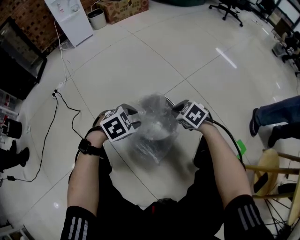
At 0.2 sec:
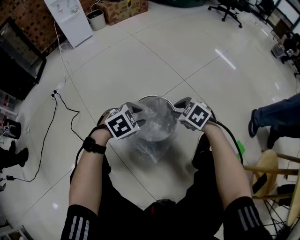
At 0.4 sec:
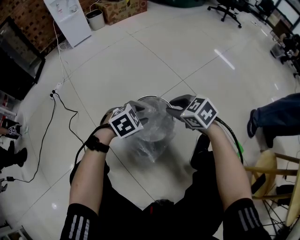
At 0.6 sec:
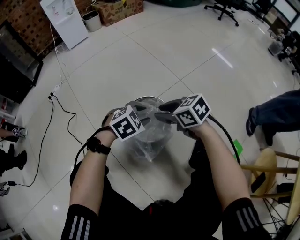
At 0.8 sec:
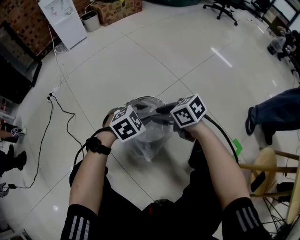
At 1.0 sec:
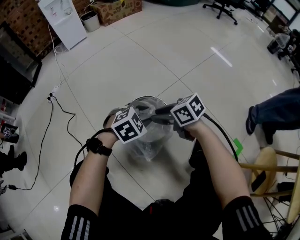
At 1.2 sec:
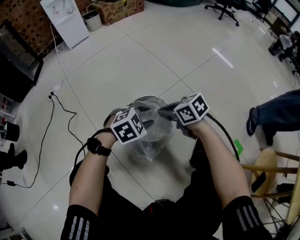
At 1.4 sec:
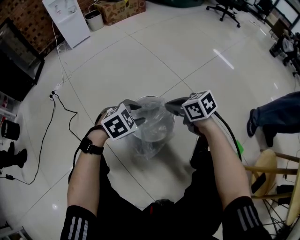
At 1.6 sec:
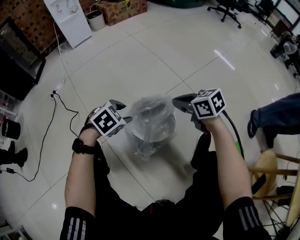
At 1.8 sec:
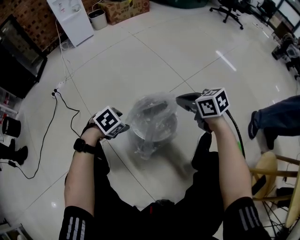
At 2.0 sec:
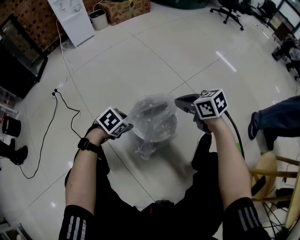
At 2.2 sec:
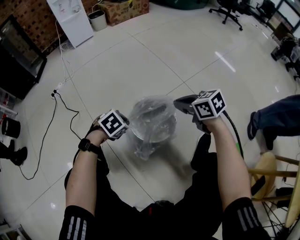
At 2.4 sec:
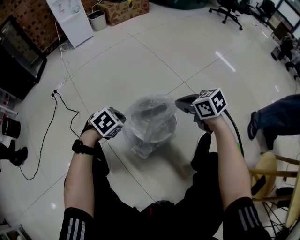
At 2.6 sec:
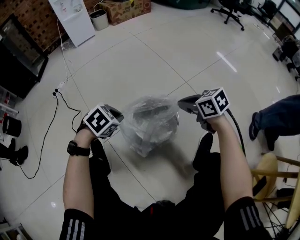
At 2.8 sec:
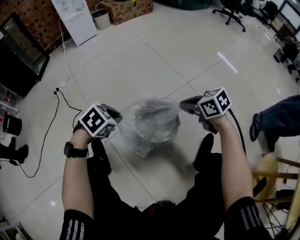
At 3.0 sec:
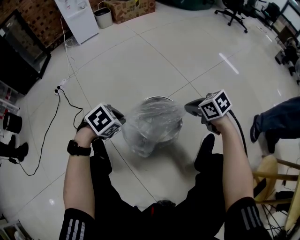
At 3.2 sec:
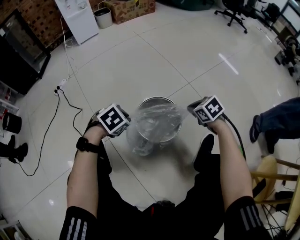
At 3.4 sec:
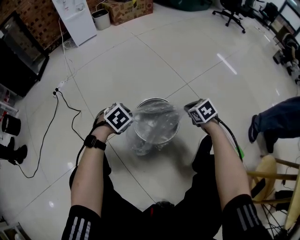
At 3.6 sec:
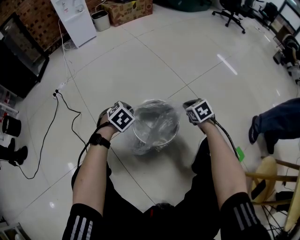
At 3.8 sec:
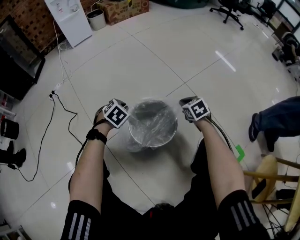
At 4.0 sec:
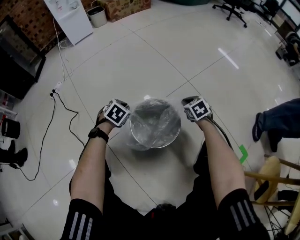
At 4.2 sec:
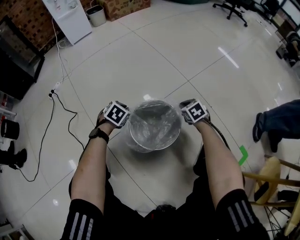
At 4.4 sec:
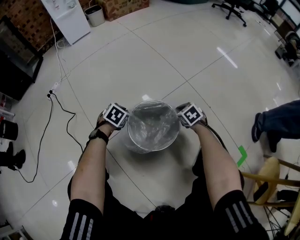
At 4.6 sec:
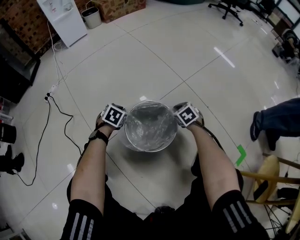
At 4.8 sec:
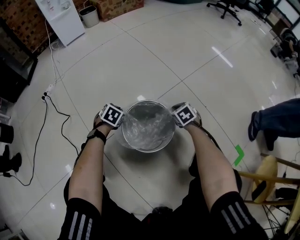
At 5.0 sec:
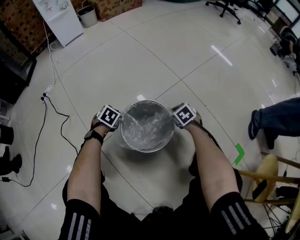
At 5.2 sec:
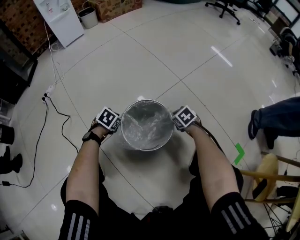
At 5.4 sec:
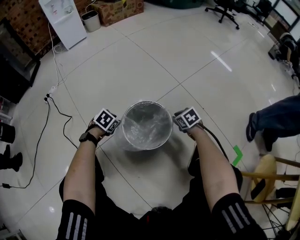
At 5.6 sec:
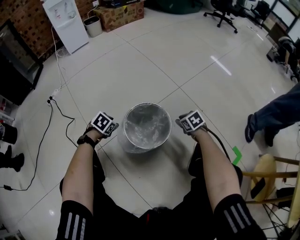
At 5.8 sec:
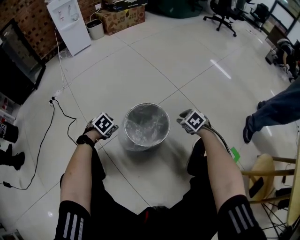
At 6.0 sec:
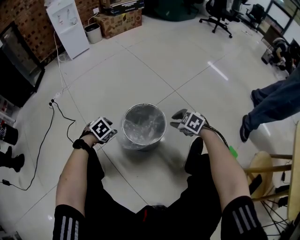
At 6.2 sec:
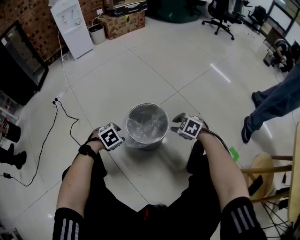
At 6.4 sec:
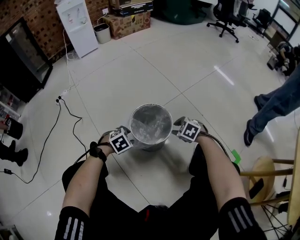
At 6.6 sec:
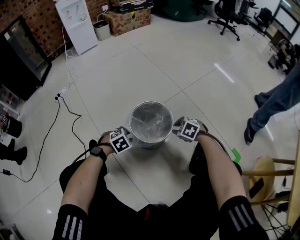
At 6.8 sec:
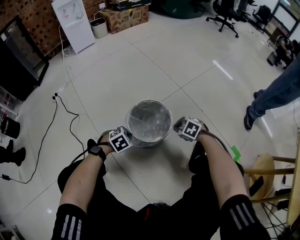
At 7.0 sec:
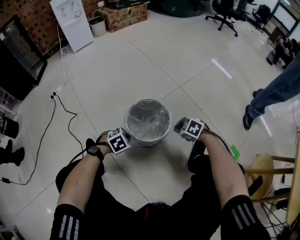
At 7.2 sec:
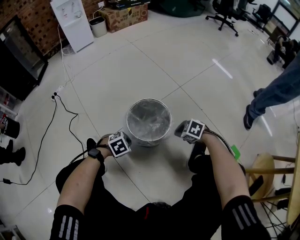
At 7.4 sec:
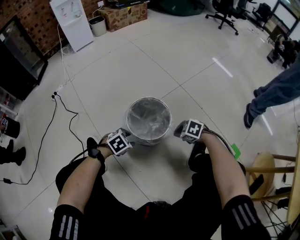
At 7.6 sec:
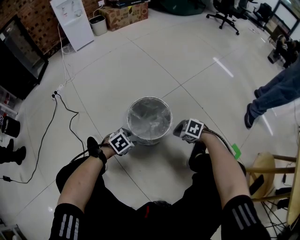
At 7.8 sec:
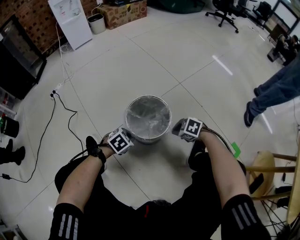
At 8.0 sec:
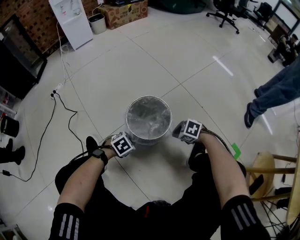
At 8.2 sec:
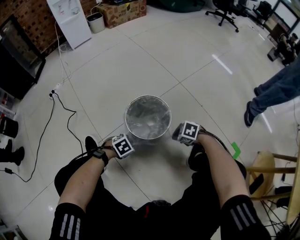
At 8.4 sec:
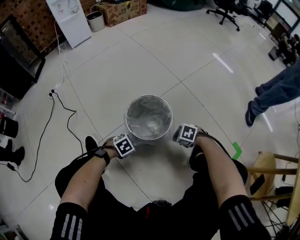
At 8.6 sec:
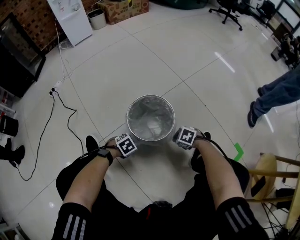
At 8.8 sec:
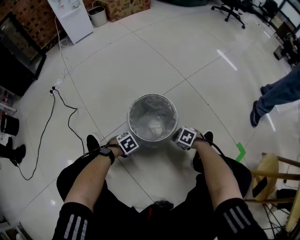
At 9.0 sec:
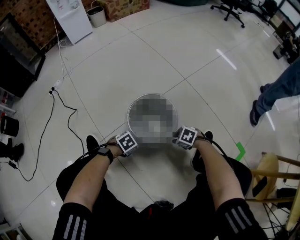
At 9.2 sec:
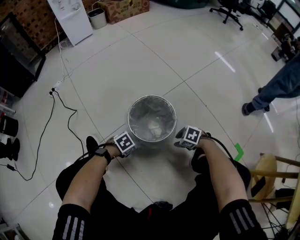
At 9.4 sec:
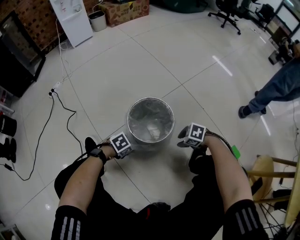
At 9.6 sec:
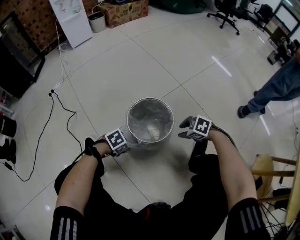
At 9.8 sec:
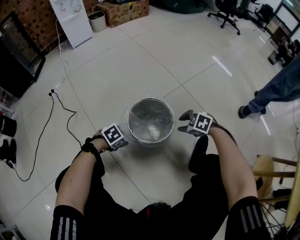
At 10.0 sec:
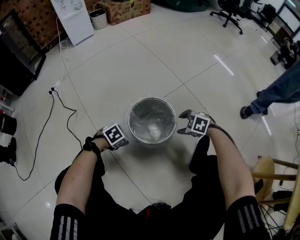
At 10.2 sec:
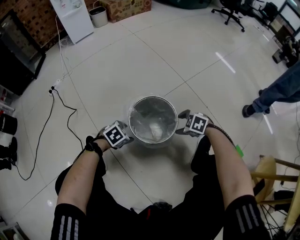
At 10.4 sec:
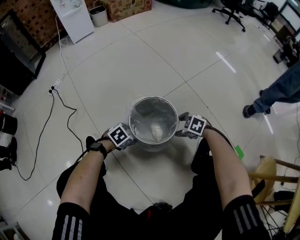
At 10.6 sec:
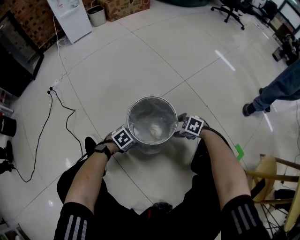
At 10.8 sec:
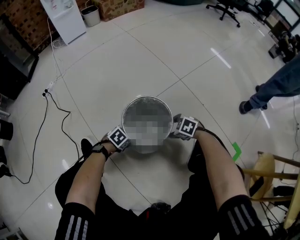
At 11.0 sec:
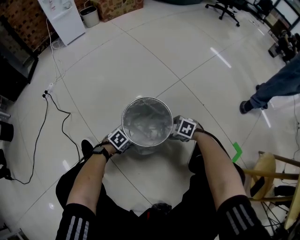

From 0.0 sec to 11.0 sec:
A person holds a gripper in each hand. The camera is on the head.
From 0.0 sec to 1.6 sec: The right gripper heads upward, covering some 10 cm, swivels roughly 30 degrees, and opens, then closes once more.
From 1.6 sec to 3.2 sec: The left gripper goes up and down, some 10 cm each way, reversing 2 times, and closes up. Meanwhile the right gripper moves downward, approximately 10 cm, and turns by roughly 30 degrees.
From 3.2 sec to 4.8 sec: Both grippers travel together downward and forward, roughly 20 cm. The left gripper swivels some 20 degrees.
From 4.8 sec to 6.2 sec: Both grippers move backward and upward, about 20 cm. The right gripper turns by some 30 degrees, and opens. Meanwhile the left gripper swivels approximately 30 degrees, and opens.
From 6.2 sec to 7.8 sec: Both grippers travel together downward, some 5 cm. The right gripper closes its fingers. Meanwhile the left gripper closes.
From 7.8 sec to 9.4 sec: The left gripper moves downward, roughly 5 cm, and opens up; the right gripper travels downward and back again, some 10 cm each way, and opens up.
From 9.4 sec to 11.0 sec: The left gripper shifts some 5 cm downward, while the right gripper ends up approximately 10 cm from where it was, and opens up.

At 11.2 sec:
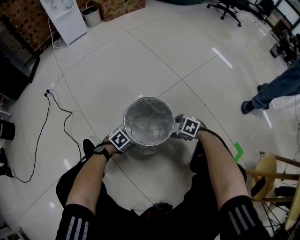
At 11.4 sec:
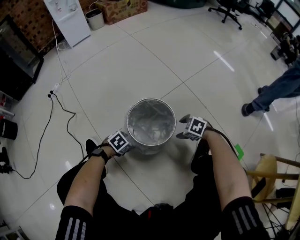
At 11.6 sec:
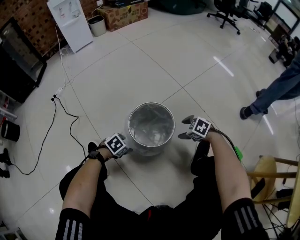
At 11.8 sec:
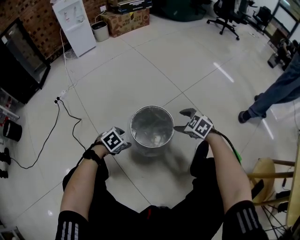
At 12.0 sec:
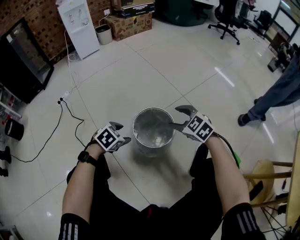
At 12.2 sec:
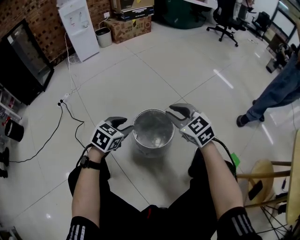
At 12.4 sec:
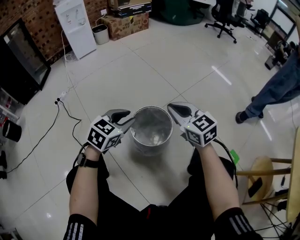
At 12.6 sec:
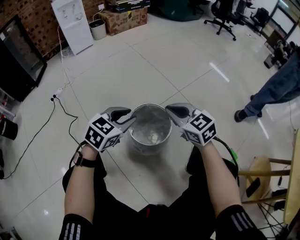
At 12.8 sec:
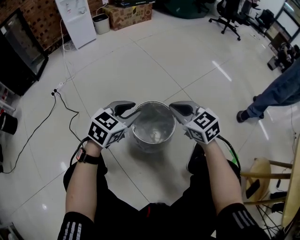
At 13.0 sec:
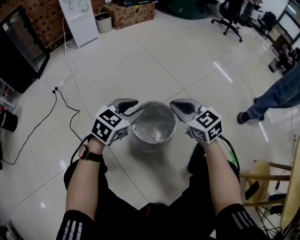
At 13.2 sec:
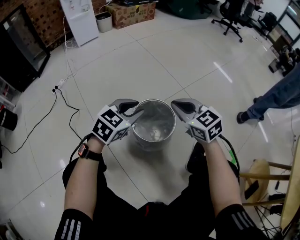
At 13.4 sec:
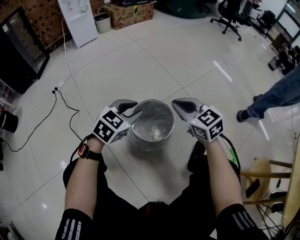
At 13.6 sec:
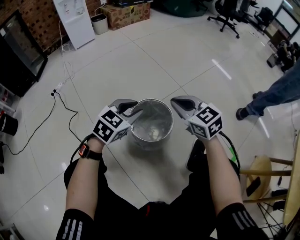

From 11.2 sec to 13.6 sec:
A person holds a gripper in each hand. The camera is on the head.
From 11.2 sec to 12.4 sec: Both grippers move upward, approximately 35 cm. The right gripper tips its fingers upward by approximately 50 degrees, and closes its fingers. The left gripper tips its fingers upward by about 40 degrees, and closes up.
From 12.4 sec to 13.6 sec: The grippers move only a little.

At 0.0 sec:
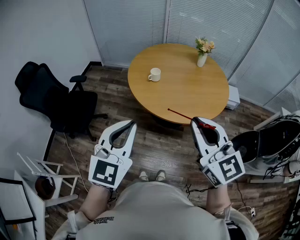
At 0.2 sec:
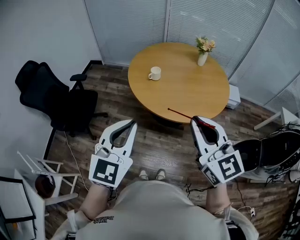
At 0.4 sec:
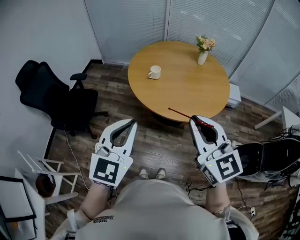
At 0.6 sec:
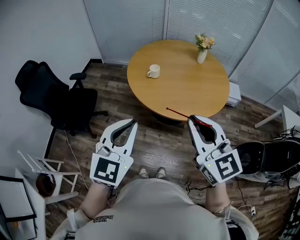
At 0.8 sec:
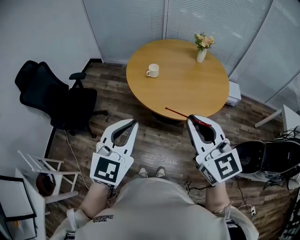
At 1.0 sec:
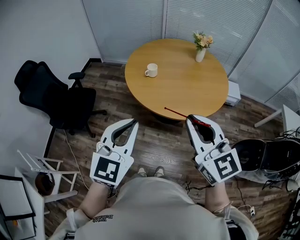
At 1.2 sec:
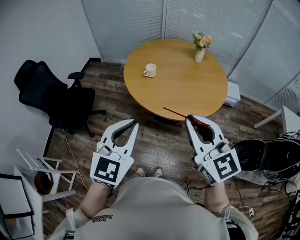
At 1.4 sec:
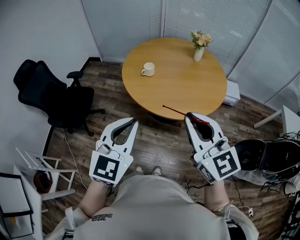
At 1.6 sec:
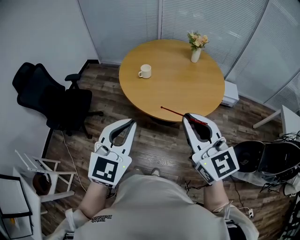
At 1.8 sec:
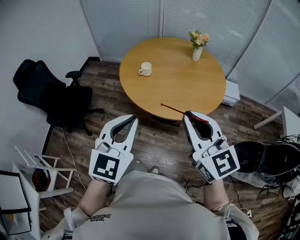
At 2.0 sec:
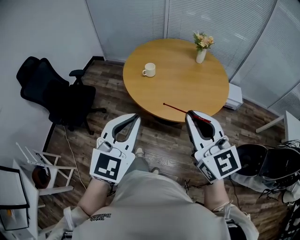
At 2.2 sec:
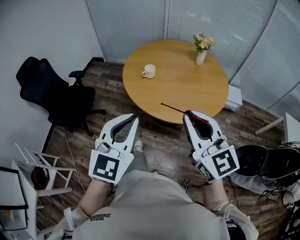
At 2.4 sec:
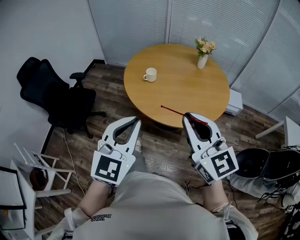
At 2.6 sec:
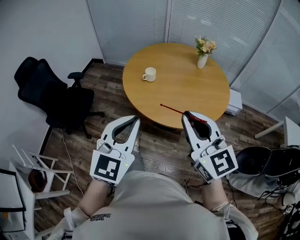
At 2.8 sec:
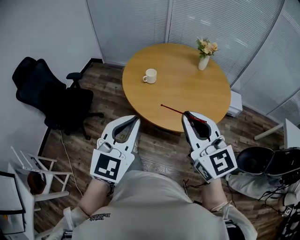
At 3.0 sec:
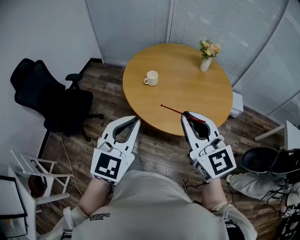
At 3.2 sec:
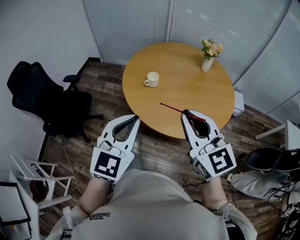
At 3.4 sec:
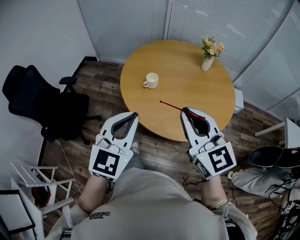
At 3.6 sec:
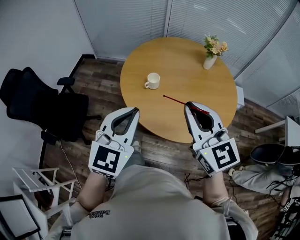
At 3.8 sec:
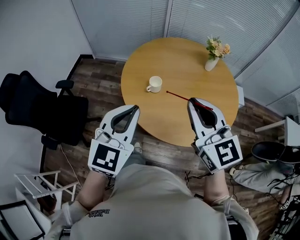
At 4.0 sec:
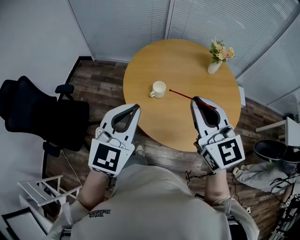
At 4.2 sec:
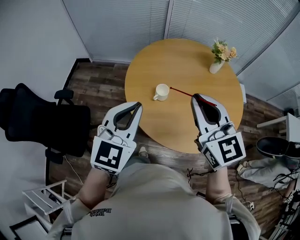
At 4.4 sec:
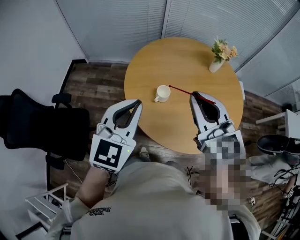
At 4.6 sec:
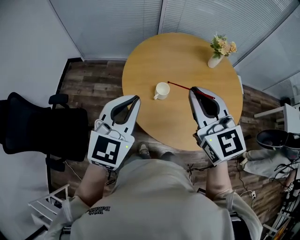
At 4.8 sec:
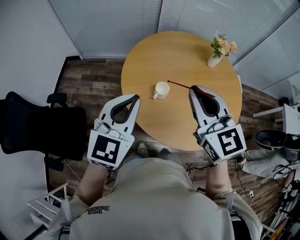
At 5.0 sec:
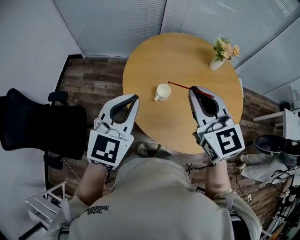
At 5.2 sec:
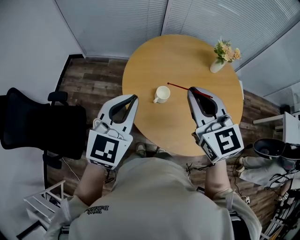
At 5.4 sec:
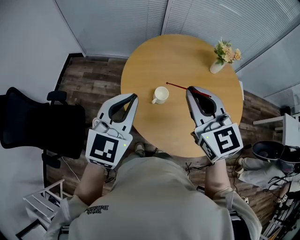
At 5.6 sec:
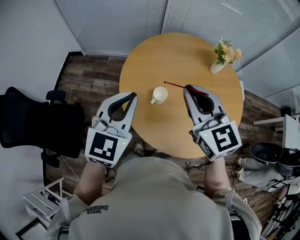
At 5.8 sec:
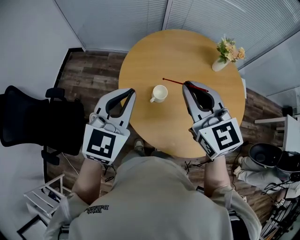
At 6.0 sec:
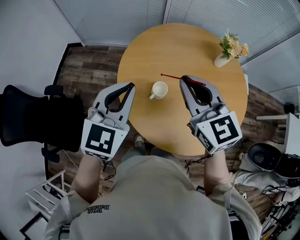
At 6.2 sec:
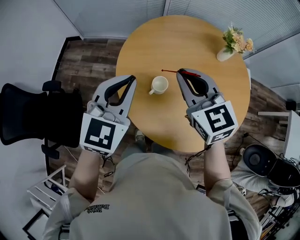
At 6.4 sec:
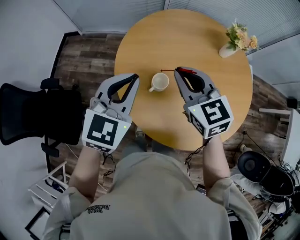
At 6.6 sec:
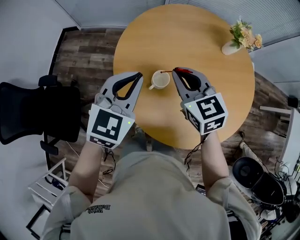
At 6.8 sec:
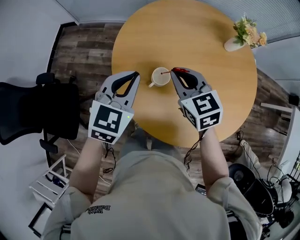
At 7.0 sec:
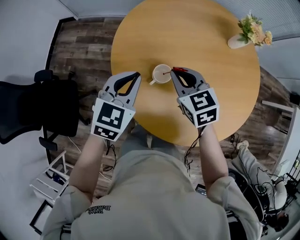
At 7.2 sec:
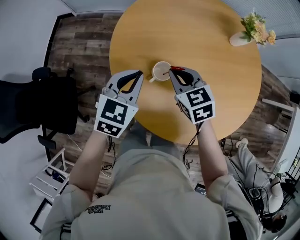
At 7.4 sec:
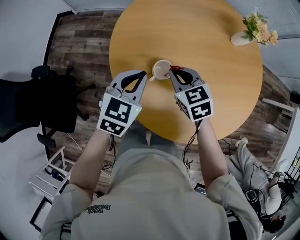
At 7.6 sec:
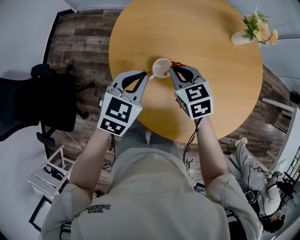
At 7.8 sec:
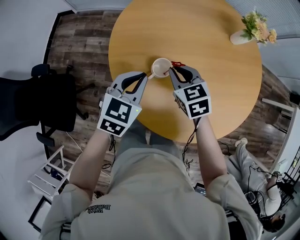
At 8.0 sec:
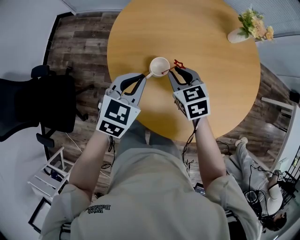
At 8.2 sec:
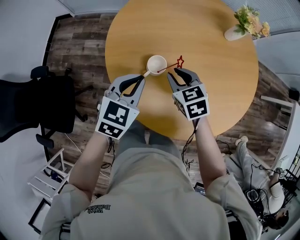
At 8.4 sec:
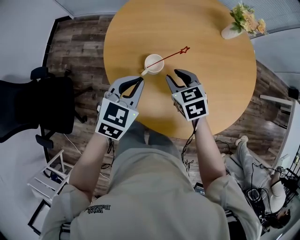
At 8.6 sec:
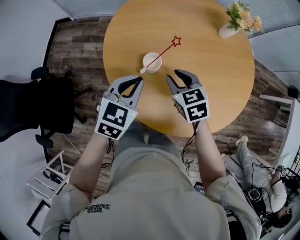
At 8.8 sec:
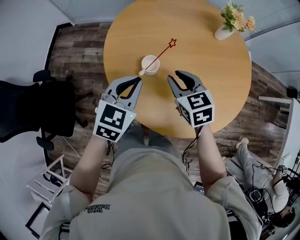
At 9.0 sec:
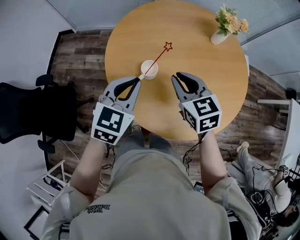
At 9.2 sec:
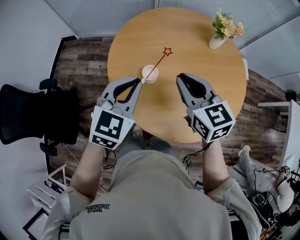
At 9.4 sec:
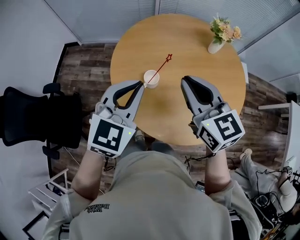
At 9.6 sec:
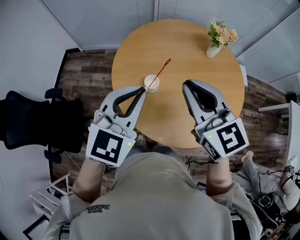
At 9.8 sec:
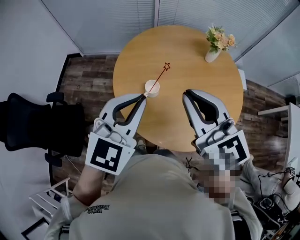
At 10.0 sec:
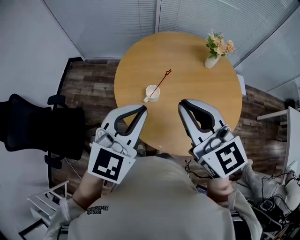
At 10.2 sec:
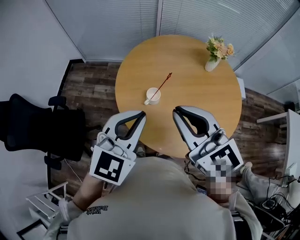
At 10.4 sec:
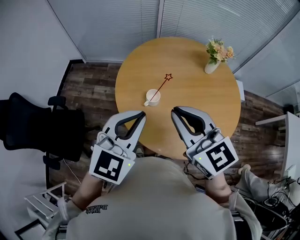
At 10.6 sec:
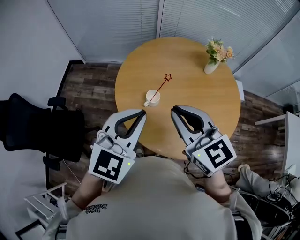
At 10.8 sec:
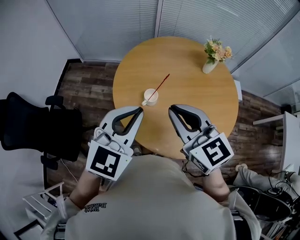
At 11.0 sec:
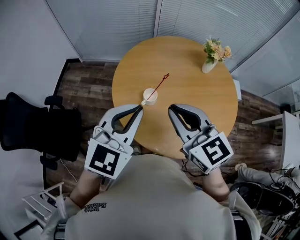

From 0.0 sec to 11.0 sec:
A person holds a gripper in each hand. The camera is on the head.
From 0.0 sec to 1.6 sec: The grippers both shift to the right by roughly 10 cm.
From 1.6 sec to 3.2 sec: The two grippers go approximately 15 cm forward.
From 3.2 sec to 4.8 sec: Both grippers travel together forward and to the left, about 30 cm.
From 4.8 sec to 6.2 sec: The left gripper goes roughly 10 cm forward; the right gripper heads forward and downward, covering roughly 15 cm.
From 6.2 sec to 7.8 sec: Both grippers travel together downward, about 20 cm. The right gripper changes its angle by some 30 degrees. Meanwhile the left gripper changes its angle by about 20 degrees.
From 7.8 sec to 9.4 sec: The grippers both shift upward and backward by some 25 cm. The right gripper changes its angle by some 30 degrees. The left gripper changes its angle by about 20 degrees.
From 9.4 sec to 11.0 sec: The left gripper moves upward, roughly 5 cm, while the right gripper moves backward, roughly 5 cm.
